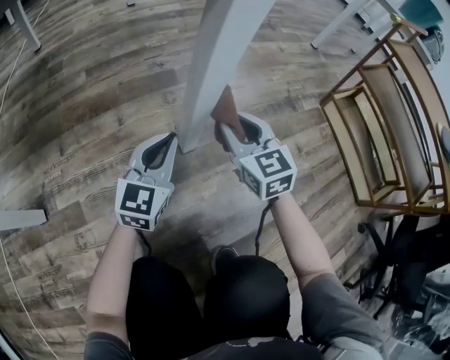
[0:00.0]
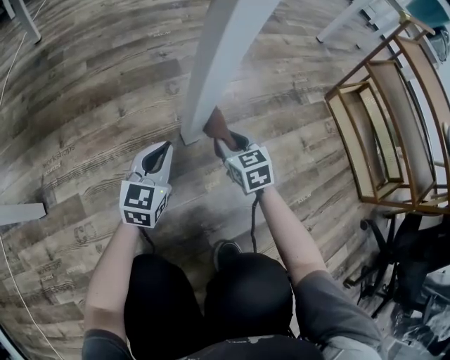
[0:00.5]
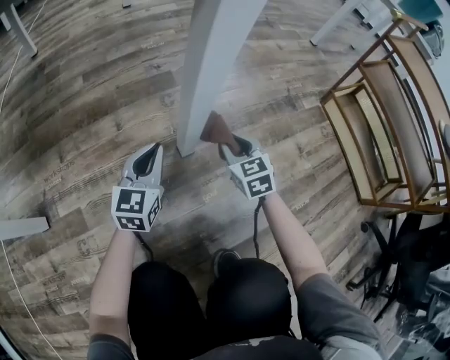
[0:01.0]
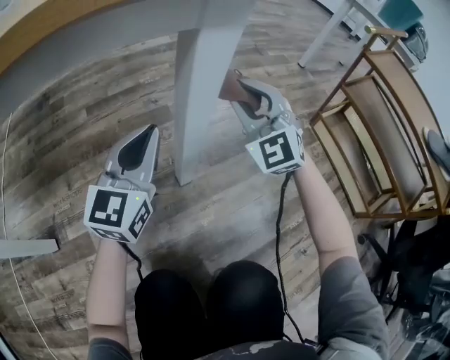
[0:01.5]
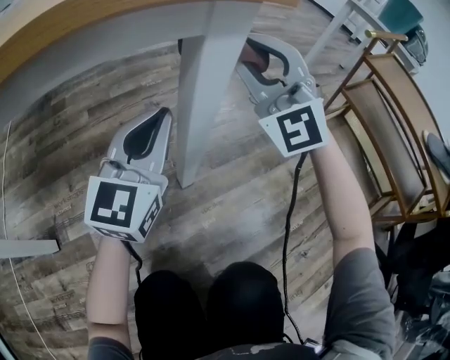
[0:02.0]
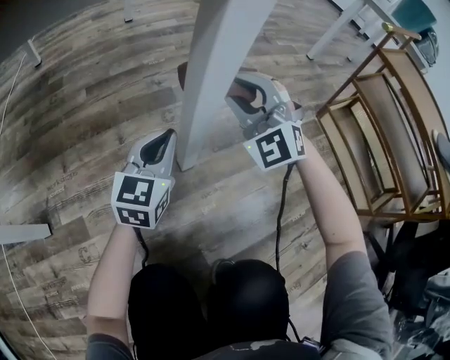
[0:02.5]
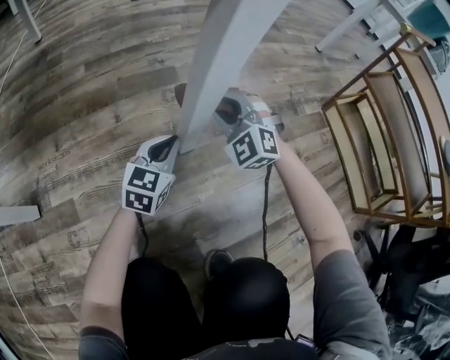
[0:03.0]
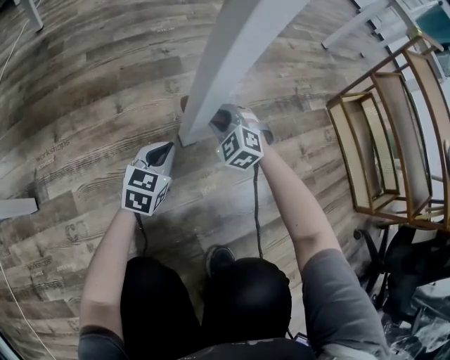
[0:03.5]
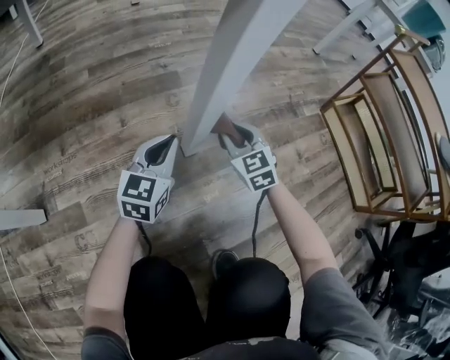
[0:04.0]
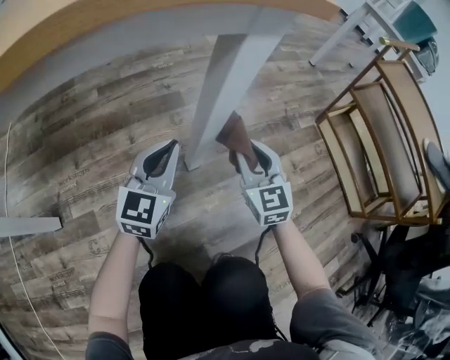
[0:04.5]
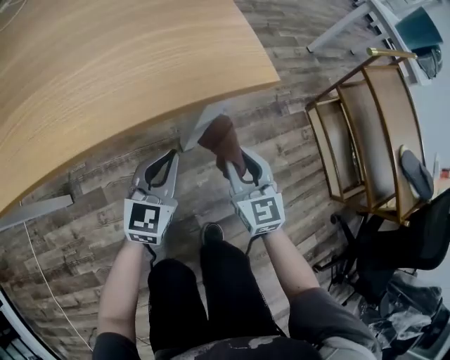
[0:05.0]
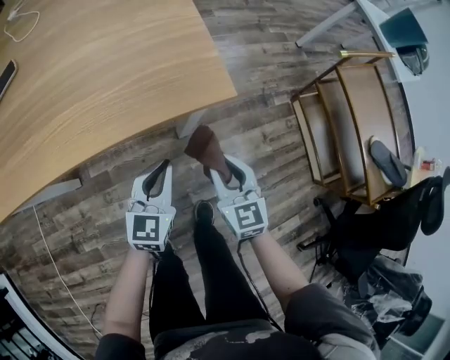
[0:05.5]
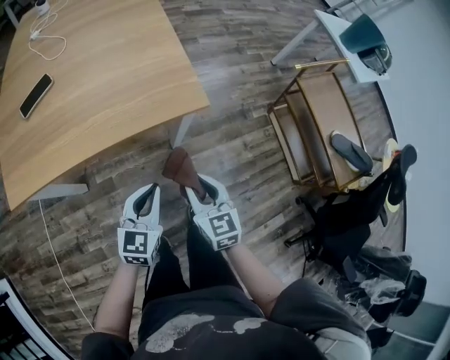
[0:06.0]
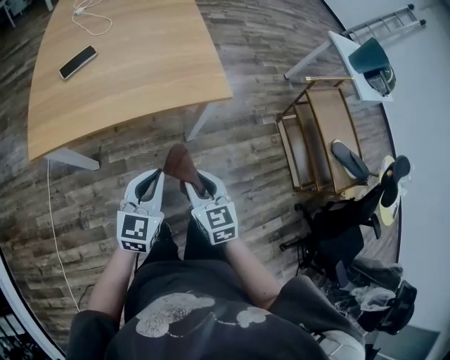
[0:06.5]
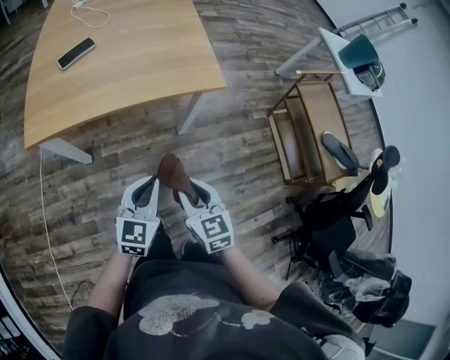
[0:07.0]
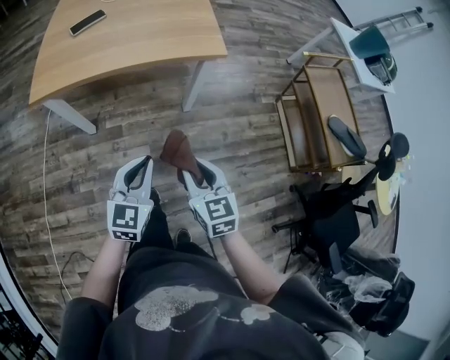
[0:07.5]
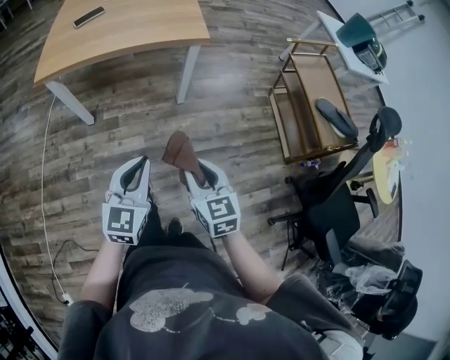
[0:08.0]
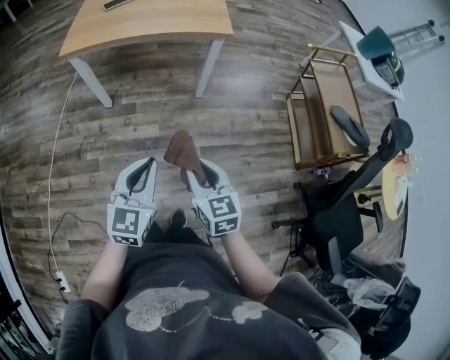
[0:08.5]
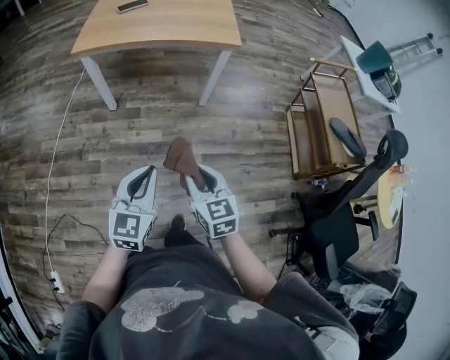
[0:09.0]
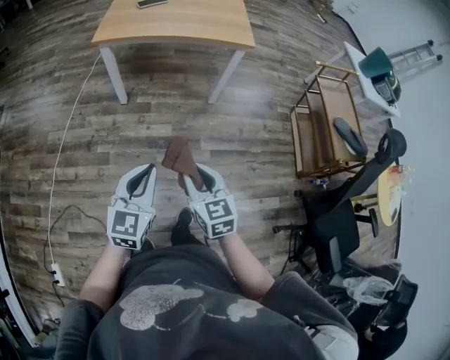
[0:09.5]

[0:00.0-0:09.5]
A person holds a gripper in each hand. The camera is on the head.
0.0 to 2.0 s: The two grippers go about 25 cm upward. The right gripper rotates around the line of its fingers by approximately 50 degrees, counterclockwise from behind.
2.0 to 4.0 s: The right gripper goes roughly 35 cm downward, and tilts its fingers approximately 30 degrees downward. The left gripper moves downward, about 25 cm, and changes its angle by about 20 degrees.
4.0 to 5.5 s: The right gripper shifts approximately 40 cm upward and backward; the left gripper moves upward, roughly 35 cm.
5.5 to 7.5 s: The grippers both shift backward and upward by approximately 35 cm.
7.5 to 9.5 s: Both grippers travel together backward, approximately 25 cm.

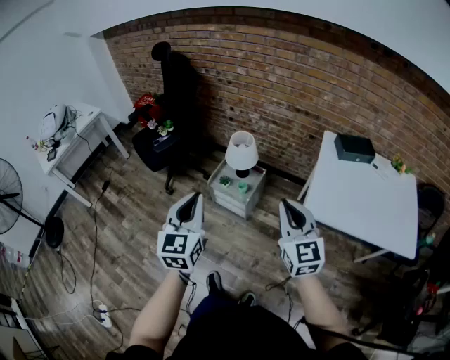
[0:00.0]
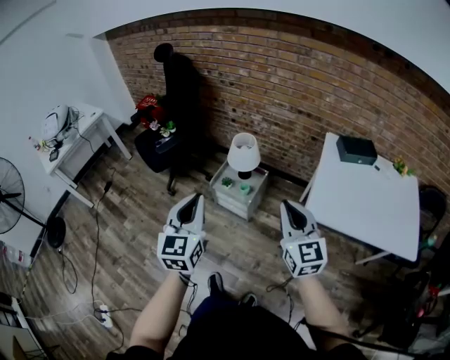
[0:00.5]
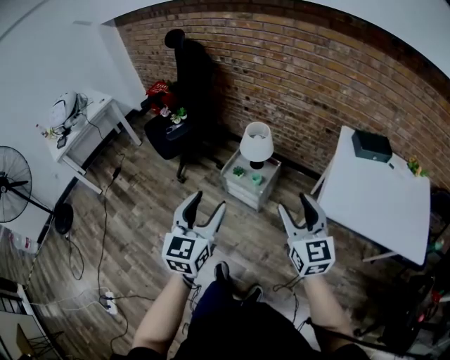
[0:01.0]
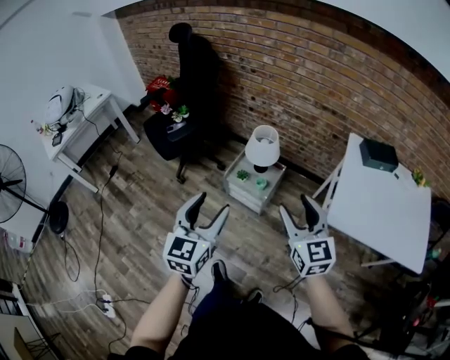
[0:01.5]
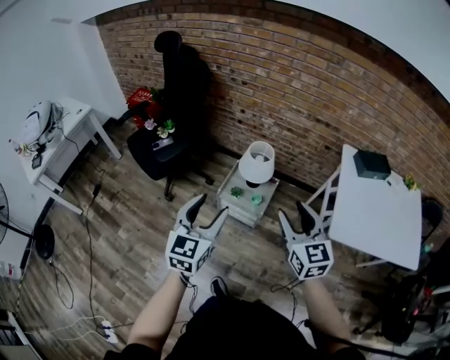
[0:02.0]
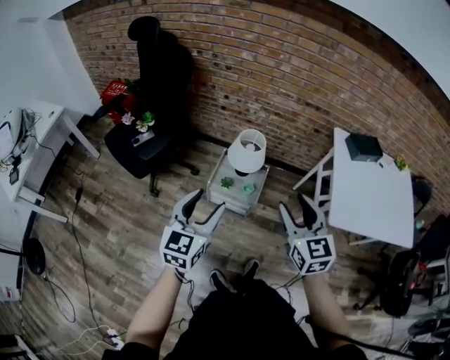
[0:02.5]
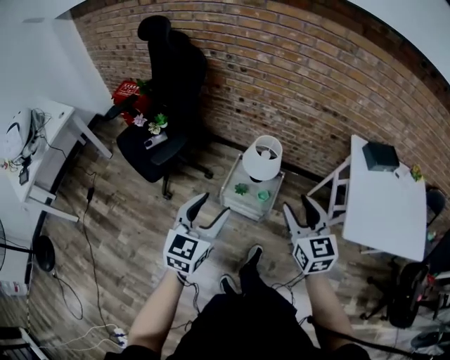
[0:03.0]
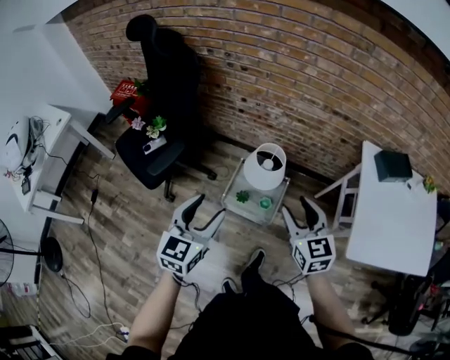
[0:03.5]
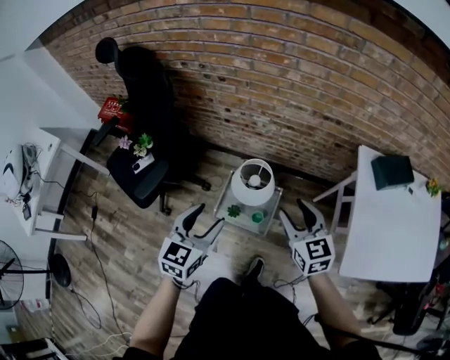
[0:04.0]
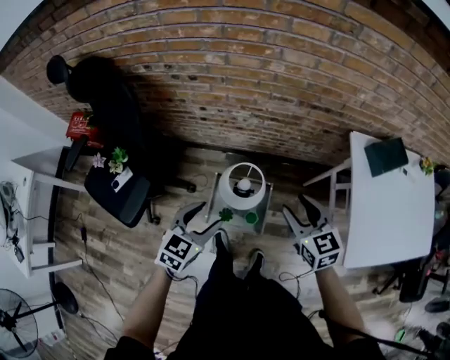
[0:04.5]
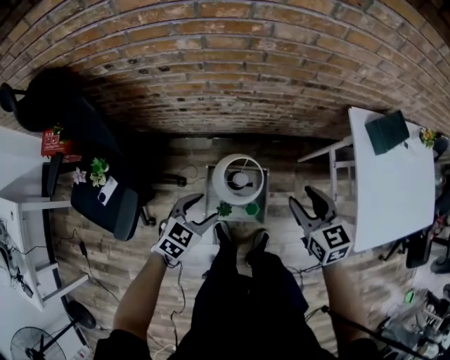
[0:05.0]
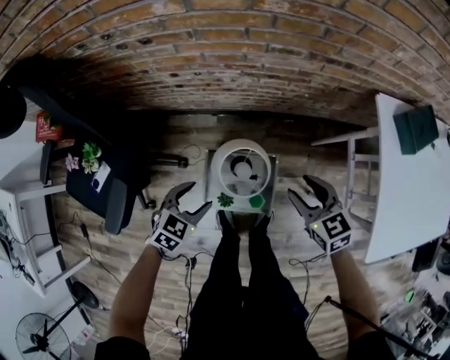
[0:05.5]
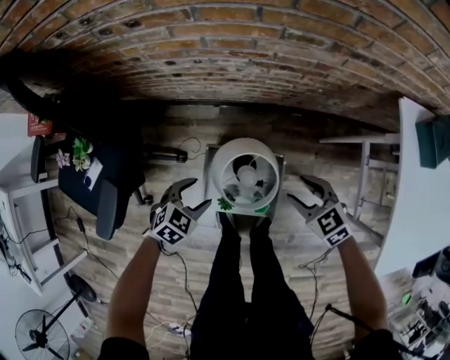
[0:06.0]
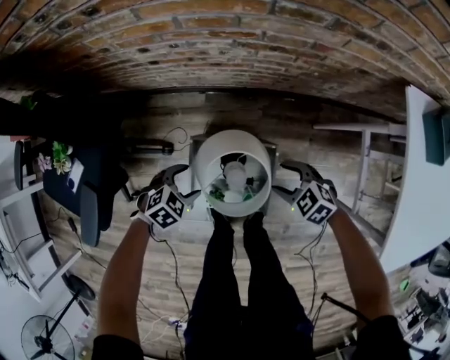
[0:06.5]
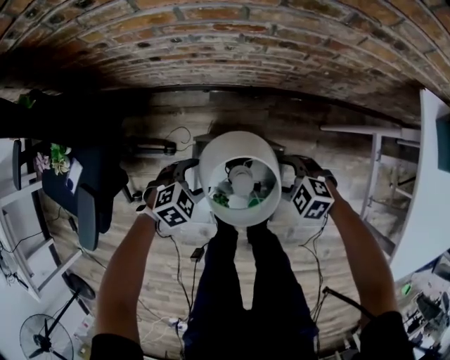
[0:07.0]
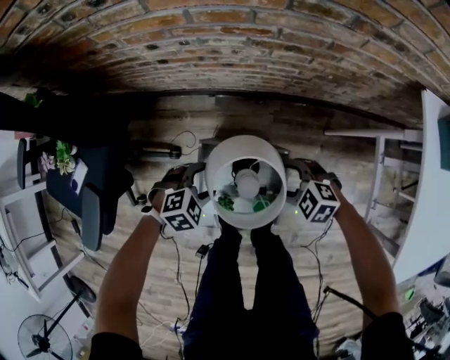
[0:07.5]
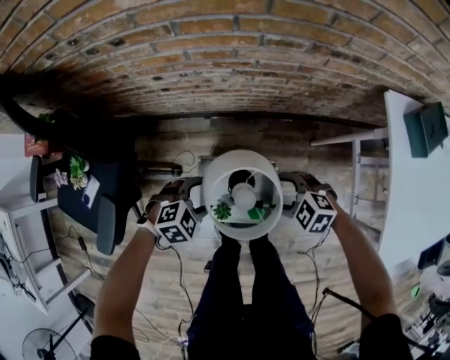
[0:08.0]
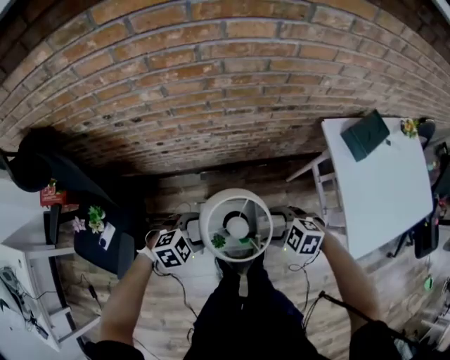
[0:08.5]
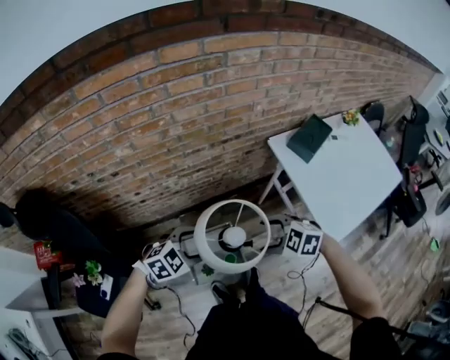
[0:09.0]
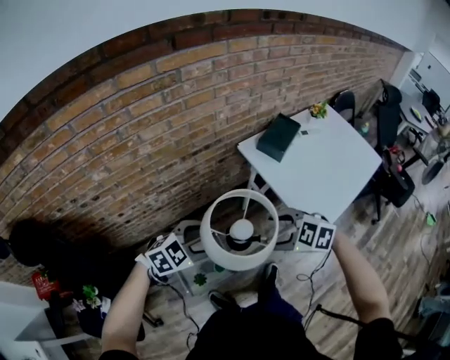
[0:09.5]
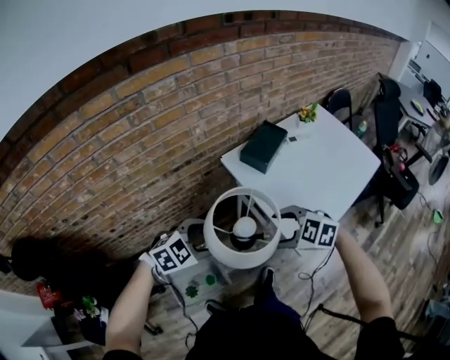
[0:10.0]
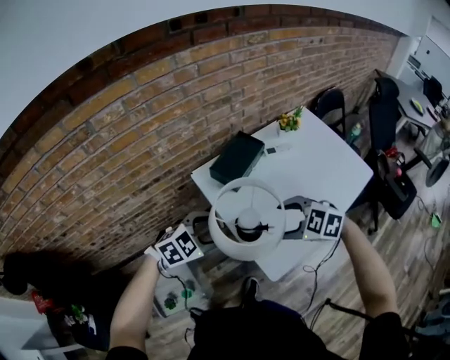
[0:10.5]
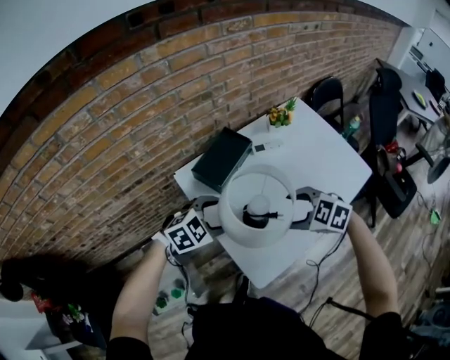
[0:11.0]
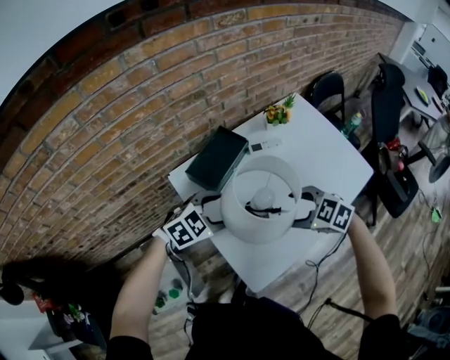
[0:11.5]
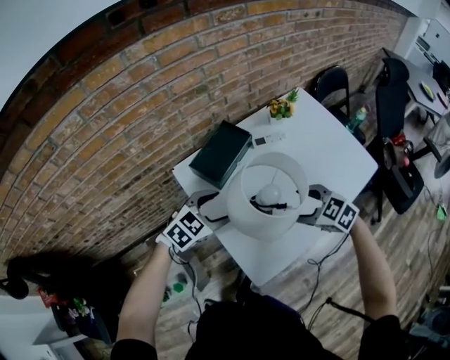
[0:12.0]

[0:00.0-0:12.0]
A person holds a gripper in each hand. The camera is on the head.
0.0 to 2.0 s: Both grippers travel together forward and to the left, roughly 20 cm. The left gripper opens up. Meanwhile the right gripper opens its fingers.
2.0 to 4.0 s: Both grippers move forward, about 30 cm.
4.0 to 6.0 s: The two grippers go some 40 cm downward and forward. The left gripper tips its fingers downward by some 30 degrees, while the right gripper turns by roughly 30 degrees.
6.0 to 8.0 s: The right gripper travels downward and back again, roughly 15 cm each way, and rotates about 30 degrees. The left gripper travels downward and back again, roughly 10 cm each way, and rotates about 30 degrees.
8.0 to 10.0 s: Both grippers travel together upward, about 40 cm. The left gripper rotates some 40 degrees; the right gripper changes its angle by some 30 degrees.
10.0 to 12.0 s: The right gripper changes place by some 40 cm. The left gripper ends up roughly 35 cm from where it was.

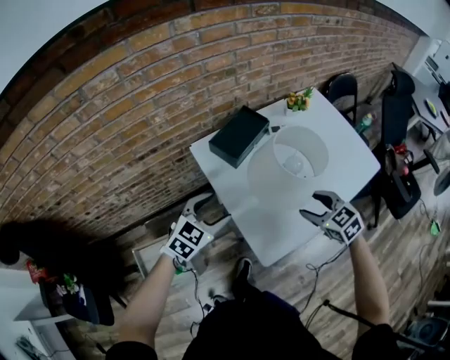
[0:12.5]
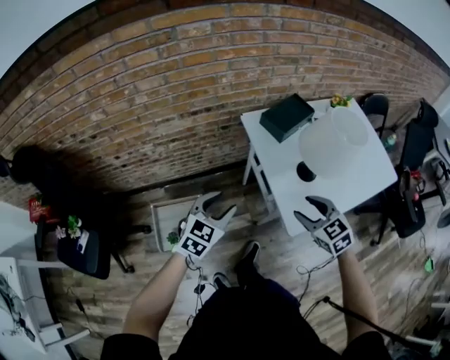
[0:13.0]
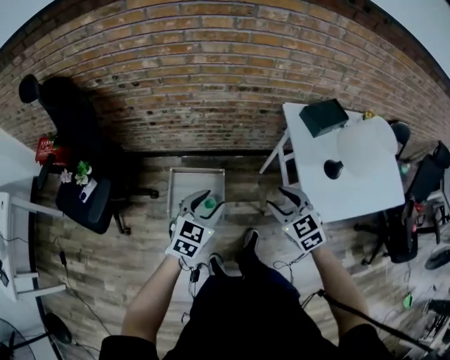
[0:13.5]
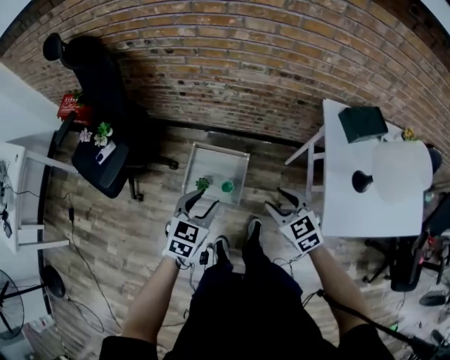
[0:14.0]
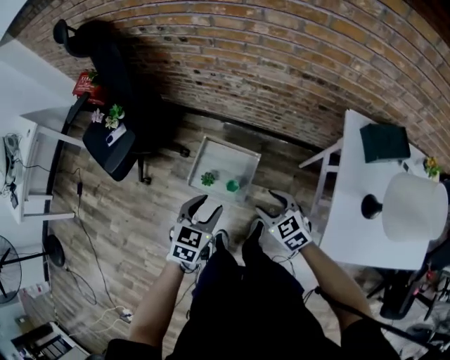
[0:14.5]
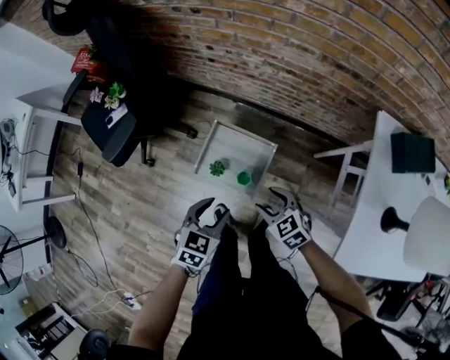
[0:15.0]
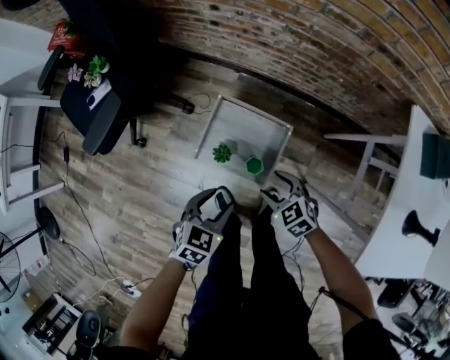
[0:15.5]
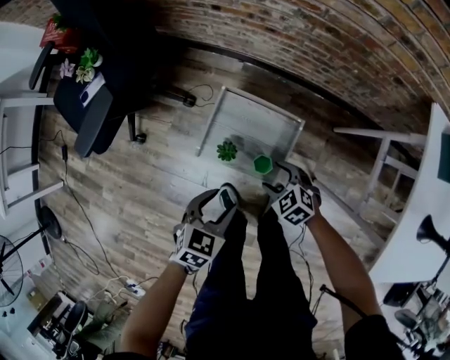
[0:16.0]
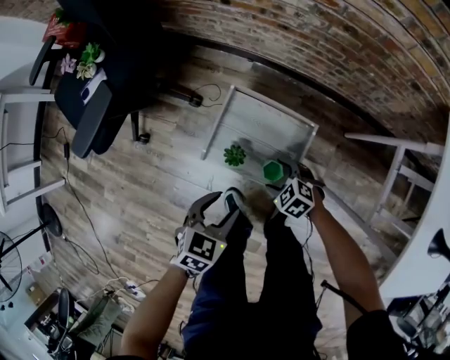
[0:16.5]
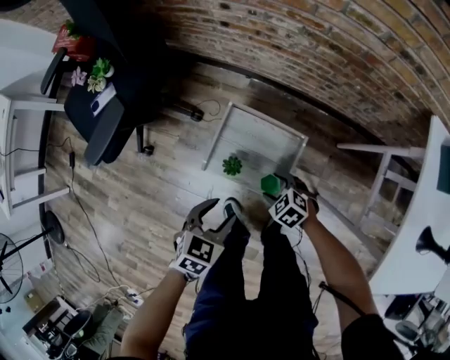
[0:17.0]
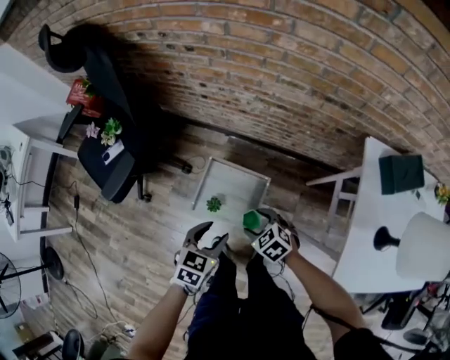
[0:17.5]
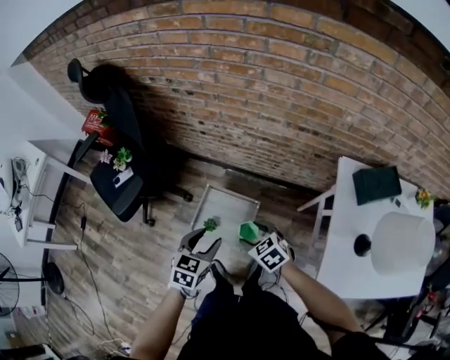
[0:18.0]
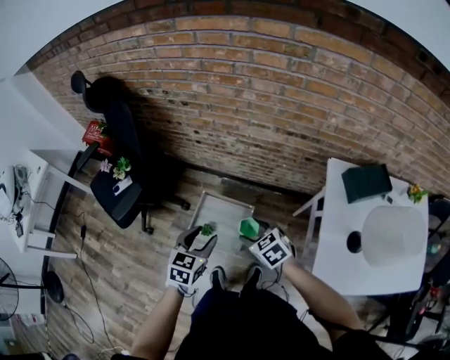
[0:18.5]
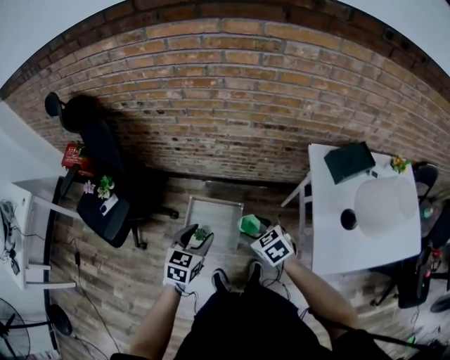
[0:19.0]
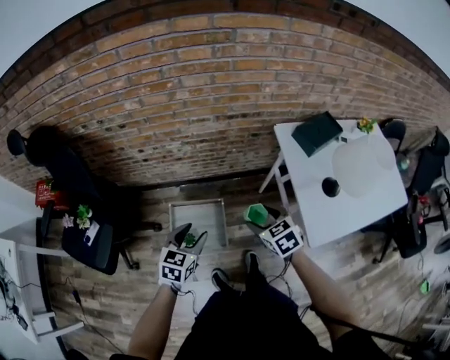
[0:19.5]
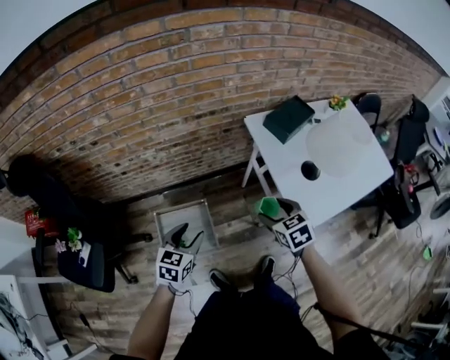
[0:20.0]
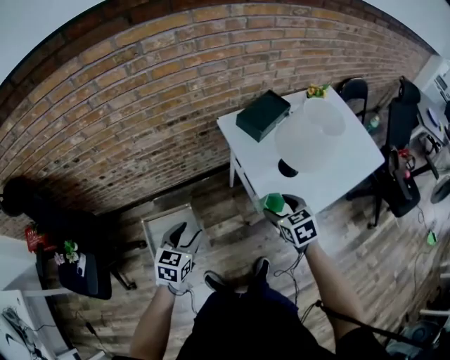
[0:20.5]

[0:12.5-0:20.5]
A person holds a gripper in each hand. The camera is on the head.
12.5 to 14.5 s: Both grippers are carried some 50 cm. The right gripper swivels approximately 50 degrees. The left gripper turns by some 60 degrees.
14.5 to 16.5 s: The two grippers go about 35 cm downward. The right gripper rotates roughly 30 degrees.
16.5 to 18.5 s: Both grippers move upward, approximately 40 cm. The right gripper swivels some 30 degrees.
18.5 to 20.5 s: The right gripper changes place by about 35 cm, and changes its angle by approximately 50 degrees; the left gripper shifts by about 15 cm, and turns by some 30 degrees.
